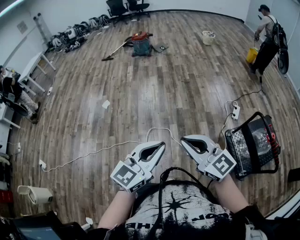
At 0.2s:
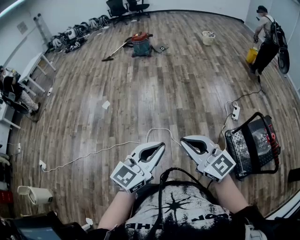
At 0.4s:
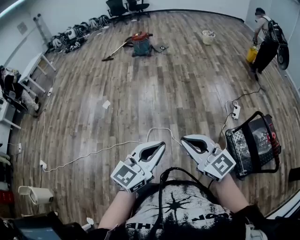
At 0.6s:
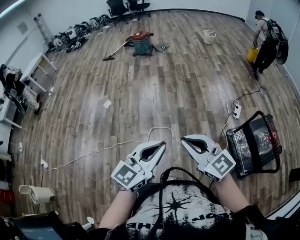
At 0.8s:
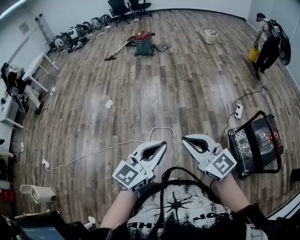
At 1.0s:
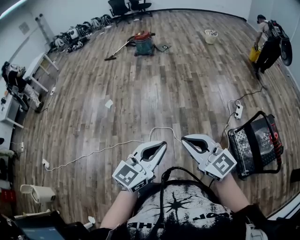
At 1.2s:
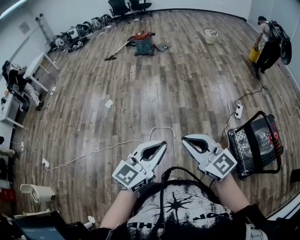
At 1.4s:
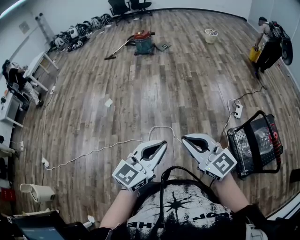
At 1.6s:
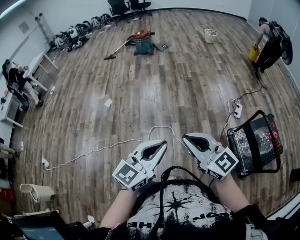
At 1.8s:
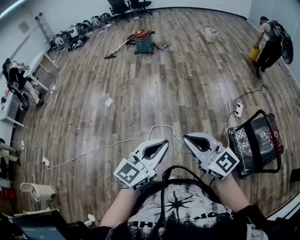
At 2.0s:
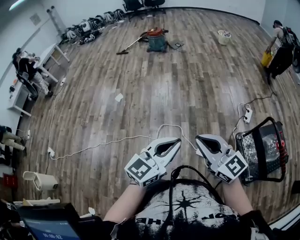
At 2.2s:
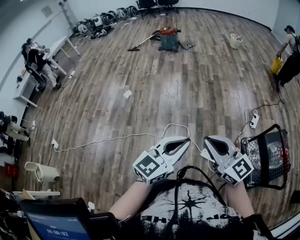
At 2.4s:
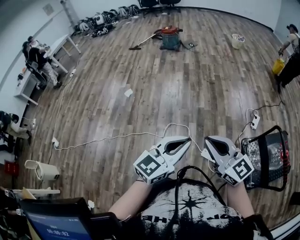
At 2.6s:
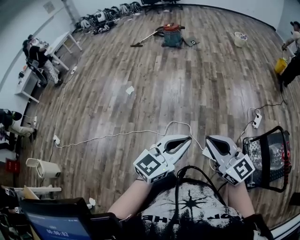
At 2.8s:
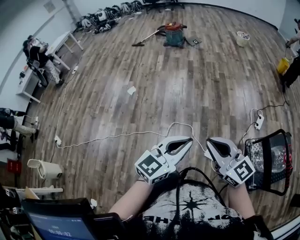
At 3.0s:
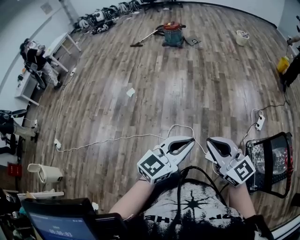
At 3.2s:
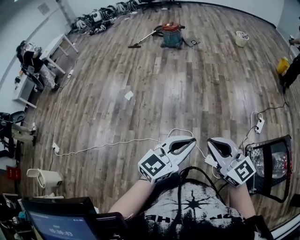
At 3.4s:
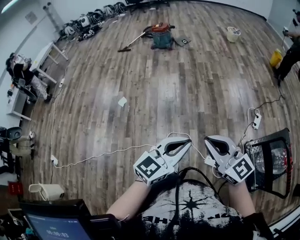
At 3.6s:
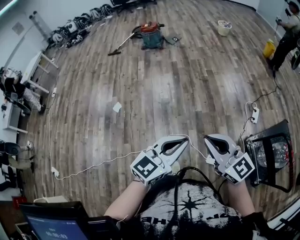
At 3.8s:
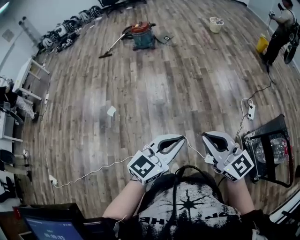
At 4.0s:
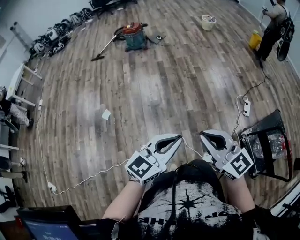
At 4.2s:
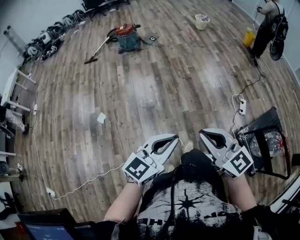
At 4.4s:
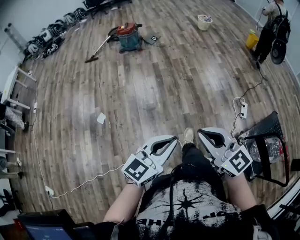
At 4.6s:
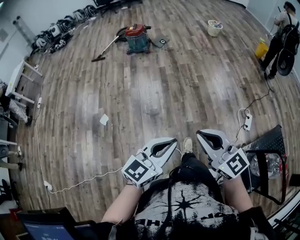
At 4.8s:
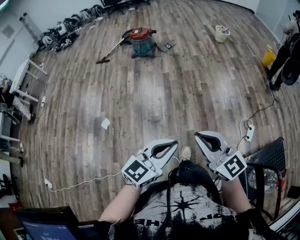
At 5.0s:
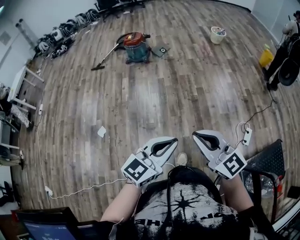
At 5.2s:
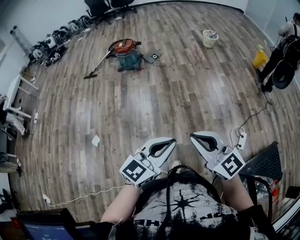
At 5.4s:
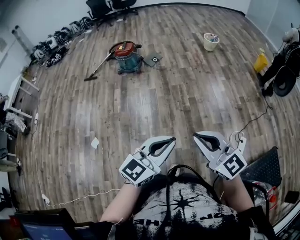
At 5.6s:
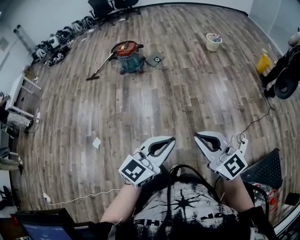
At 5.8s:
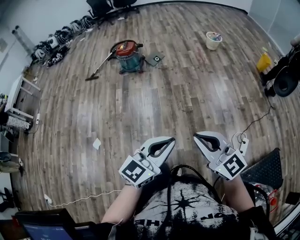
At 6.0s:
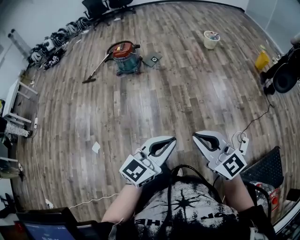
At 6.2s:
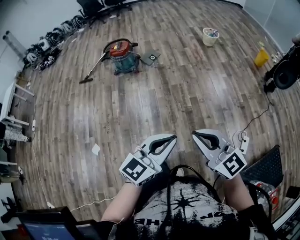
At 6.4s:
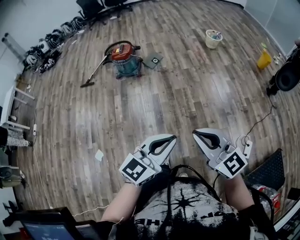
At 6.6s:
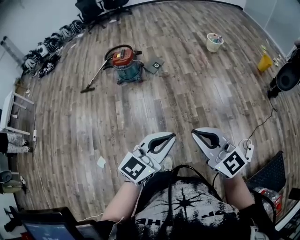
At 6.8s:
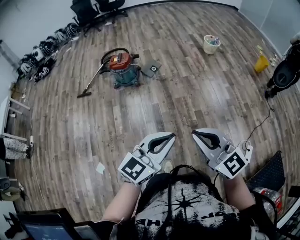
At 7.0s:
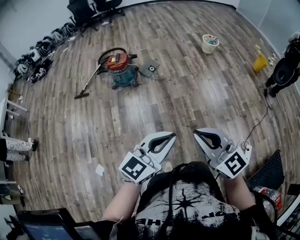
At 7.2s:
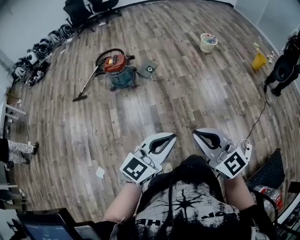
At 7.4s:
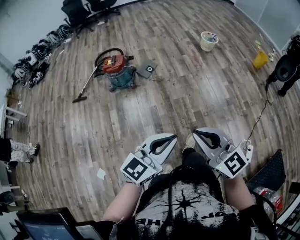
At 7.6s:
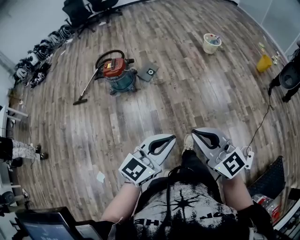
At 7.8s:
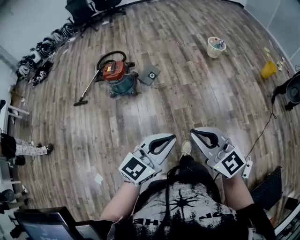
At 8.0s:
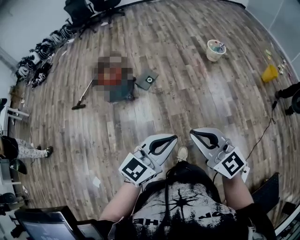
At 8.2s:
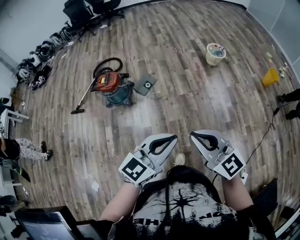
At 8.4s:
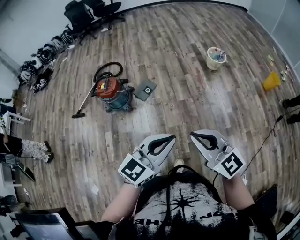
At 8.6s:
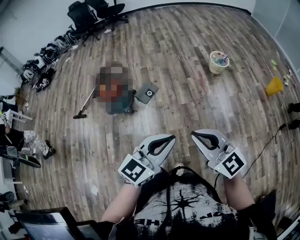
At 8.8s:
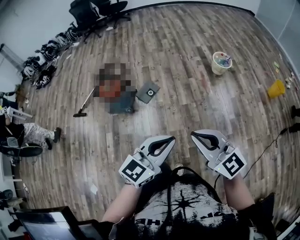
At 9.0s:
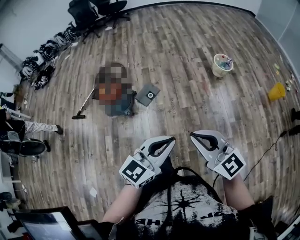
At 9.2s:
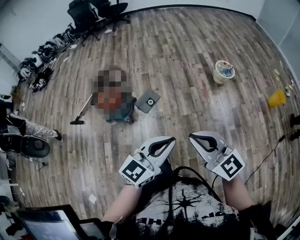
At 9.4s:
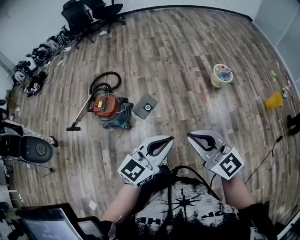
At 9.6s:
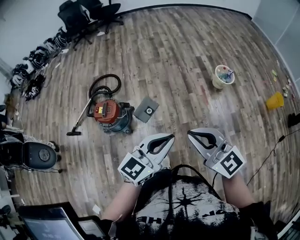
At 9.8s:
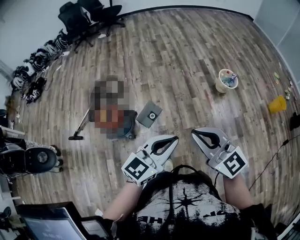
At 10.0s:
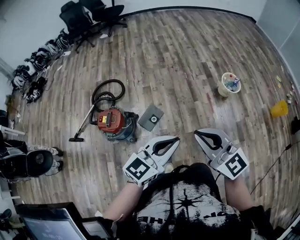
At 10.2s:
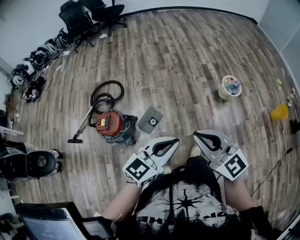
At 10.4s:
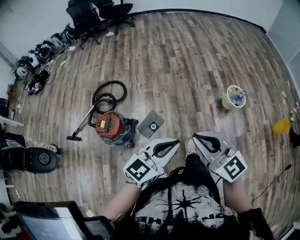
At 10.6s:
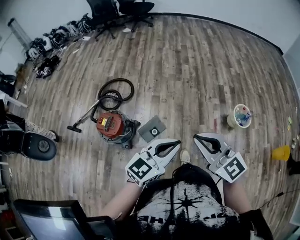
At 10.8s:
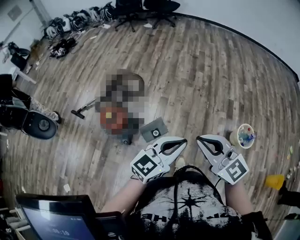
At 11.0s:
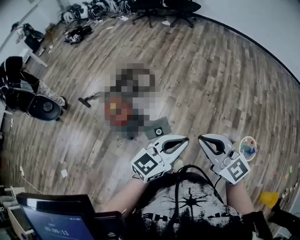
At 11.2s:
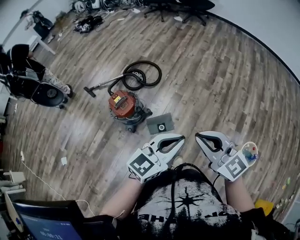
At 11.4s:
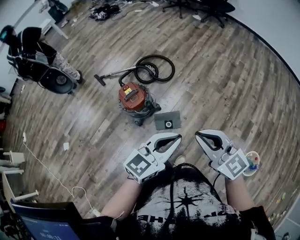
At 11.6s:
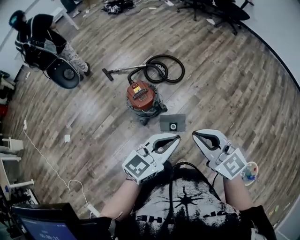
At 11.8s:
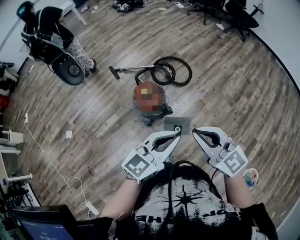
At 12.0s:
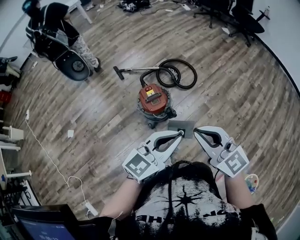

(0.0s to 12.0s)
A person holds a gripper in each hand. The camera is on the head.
0.0s - 1.6s: Both grippers stay put.
1.6s - 3.0s: Both grippers move forward, some 5 cm.
3.0s - 4.4s: Both grippers travel together forward, roughly 30 cm.
4.4s - 6.0s: The grippers both shift forward by about 35 cm.
6.0s - 7.6s: Both grippers move forward, some 35 cm.
7.6s - 9.0s: Both grippers move forward, roughly 35 cm.
9.0s - 10.4s: The two grippers travel together, forward, approximately 40 cm.
10.4s - 12.0s: The left gripper changes place by about 20 cm, and swivels some 60 degrees, while the right gripper ends up approximately 25 cm from where it was, and rotates approximately 60 degrees.

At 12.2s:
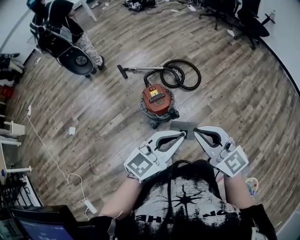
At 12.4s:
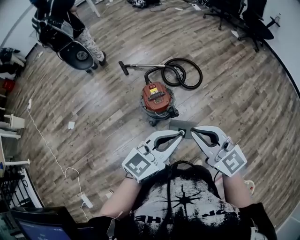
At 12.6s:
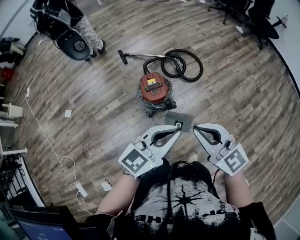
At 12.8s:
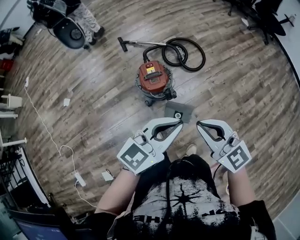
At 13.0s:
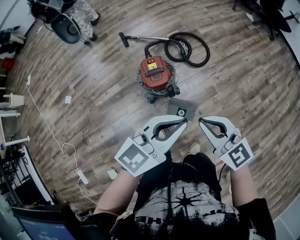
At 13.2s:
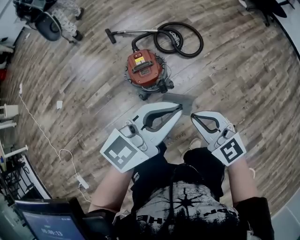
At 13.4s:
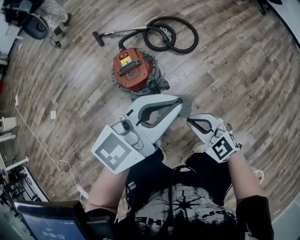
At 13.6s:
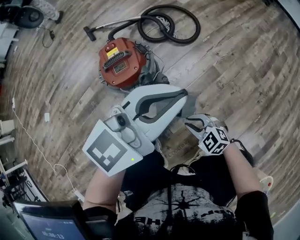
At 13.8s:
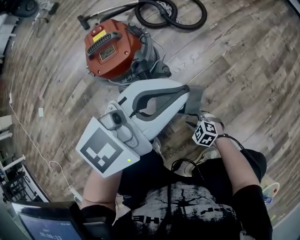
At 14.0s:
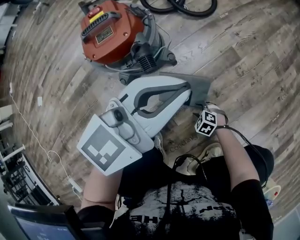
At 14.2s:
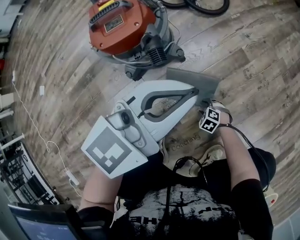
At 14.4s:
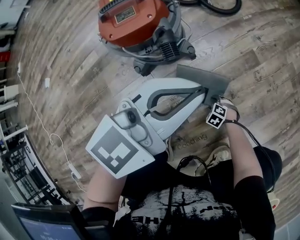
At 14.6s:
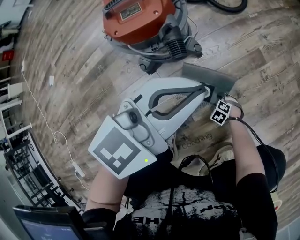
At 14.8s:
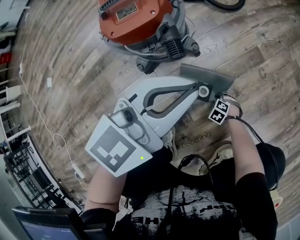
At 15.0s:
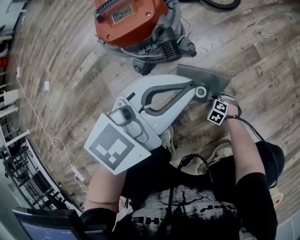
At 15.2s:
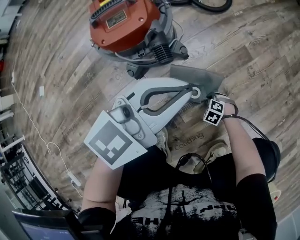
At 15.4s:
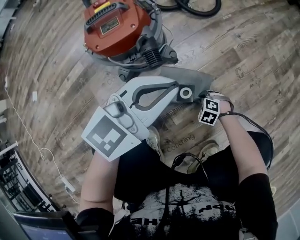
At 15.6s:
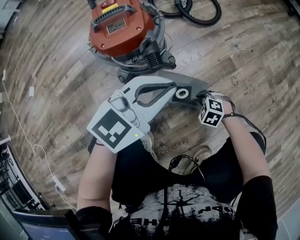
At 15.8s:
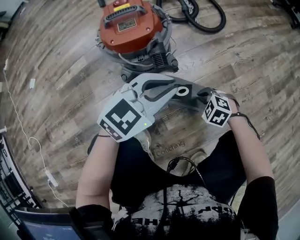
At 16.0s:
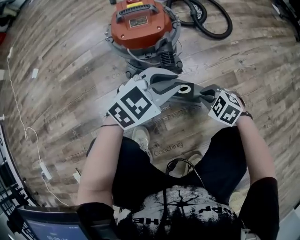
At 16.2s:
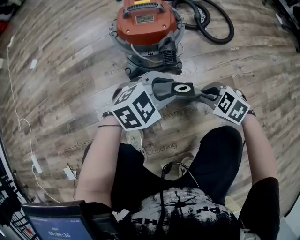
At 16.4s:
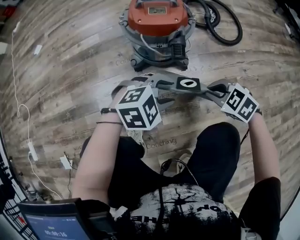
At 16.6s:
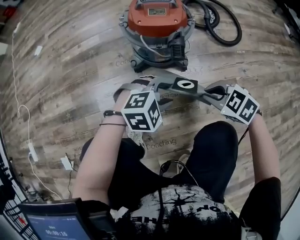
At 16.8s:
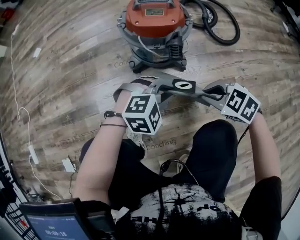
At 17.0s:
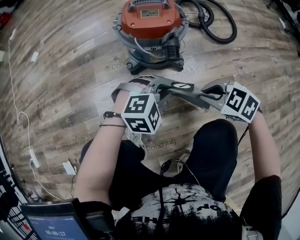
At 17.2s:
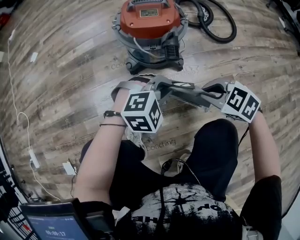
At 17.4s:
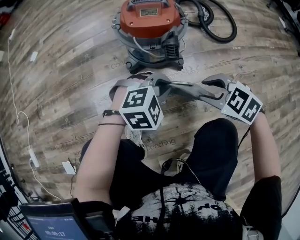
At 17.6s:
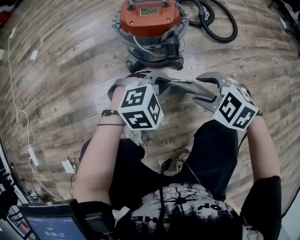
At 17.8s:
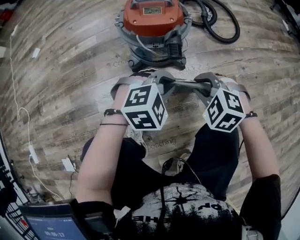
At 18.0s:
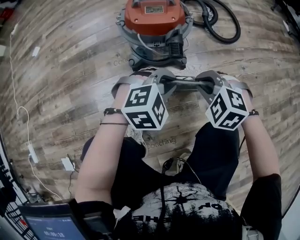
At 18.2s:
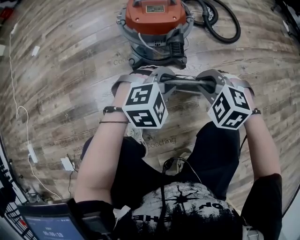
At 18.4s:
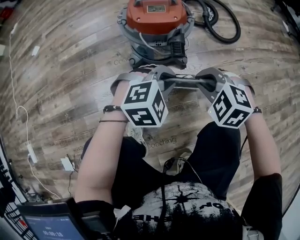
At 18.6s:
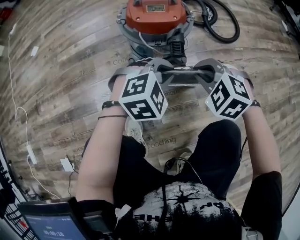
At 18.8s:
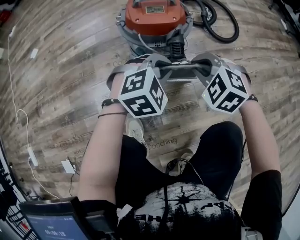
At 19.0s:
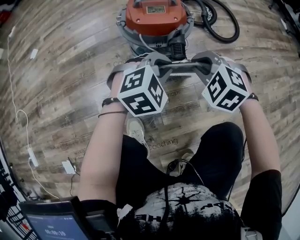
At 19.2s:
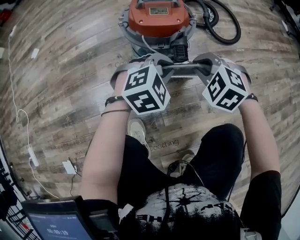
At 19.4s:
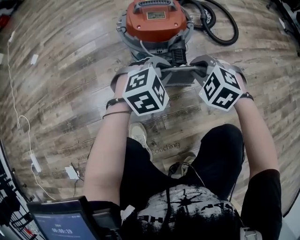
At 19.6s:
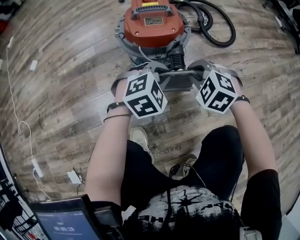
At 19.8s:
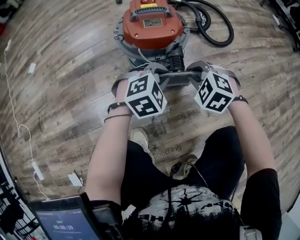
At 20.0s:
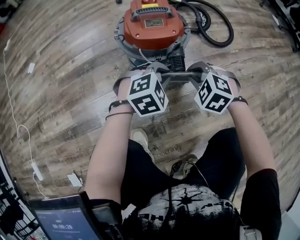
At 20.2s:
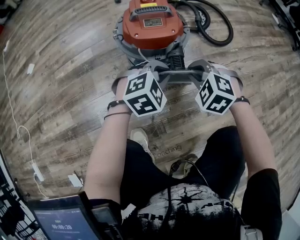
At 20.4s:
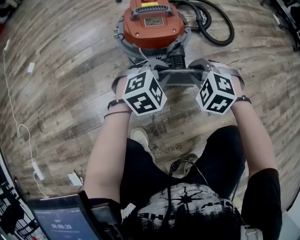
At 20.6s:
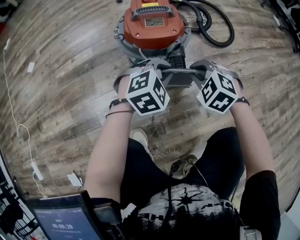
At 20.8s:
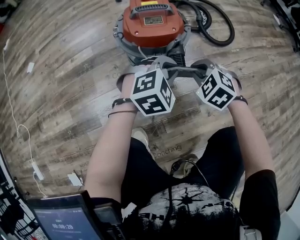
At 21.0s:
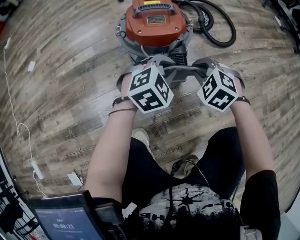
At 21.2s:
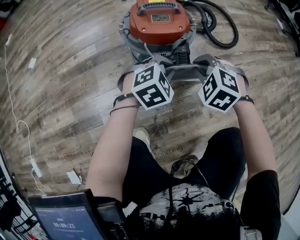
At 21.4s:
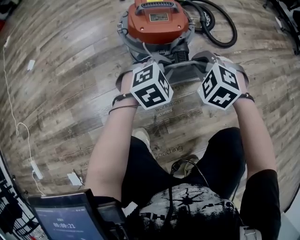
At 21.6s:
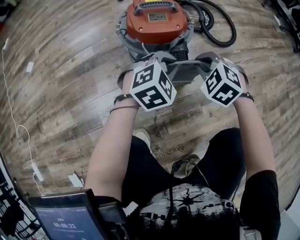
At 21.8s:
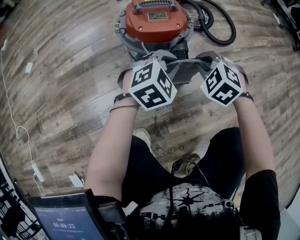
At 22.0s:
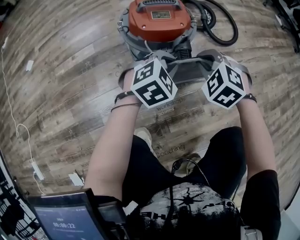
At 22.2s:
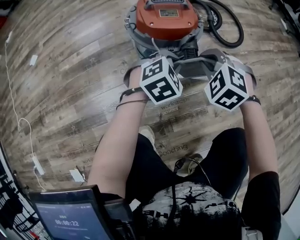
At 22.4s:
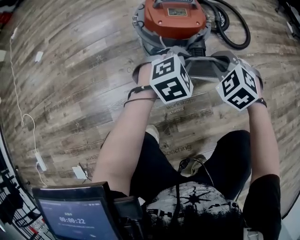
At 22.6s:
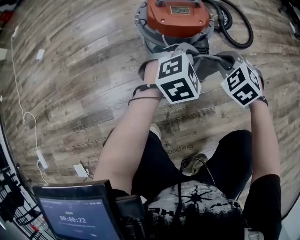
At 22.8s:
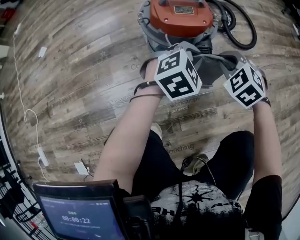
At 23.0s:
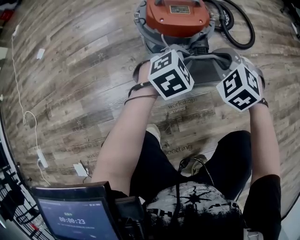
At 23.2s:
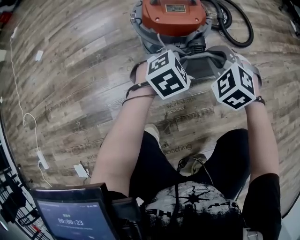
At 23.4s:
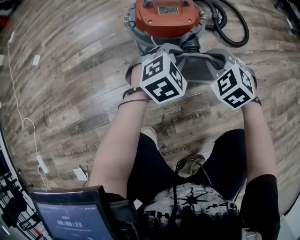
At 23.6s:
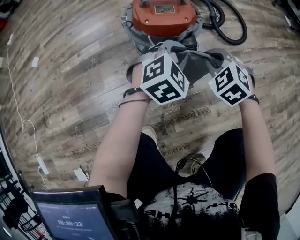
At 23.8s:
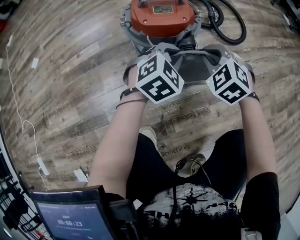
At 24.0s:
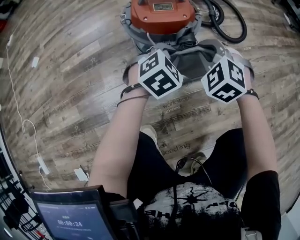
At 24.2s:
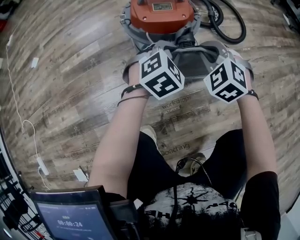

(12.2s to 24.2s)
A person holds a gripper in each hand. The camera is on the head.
12.2s - 13.8s: The right gripper is displaced downward by some 90 cm, tips its fingers downward by roughly 60 degrees, and opens its fingers. Meanwhile the left gripper moves downward, about 40 cm.
13.8s - 15.2s: The grippers both shift downward by roughly 15 cm. The right gripper swivels some 20 degrees, and closes its fingers.
15.2s - 16.6s: The left gripper heads downward, covering some 15 cm, tips its fingers downward by some 40 degrees, and opens; the right gripper is displaced upward by some 30 cm, and turns by some 30 degrees.
16.6s - 18.2s: The left gripper closes, while the right gripper moves approximately 5 cm, swivels about 30 degrees, and opens and closes again.
18.2s - 19.8s: Both grippers travel together forward, some 10 cm.
19.8s - 22.6s: The grippers make only small movements.
22.6s - 24.2s: The left gripper goes up and down, approximately 5 cm each way, reversing 2 times.
